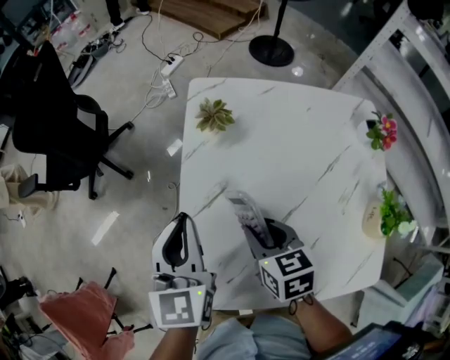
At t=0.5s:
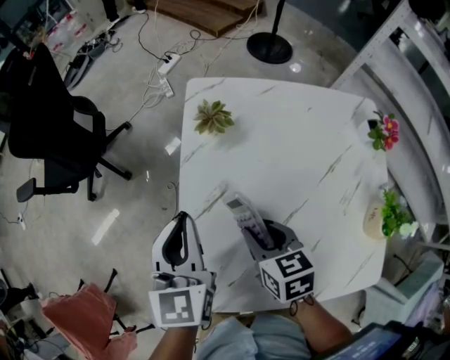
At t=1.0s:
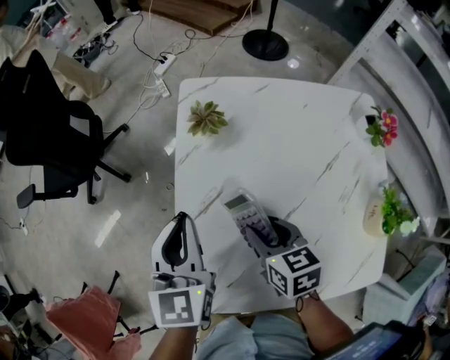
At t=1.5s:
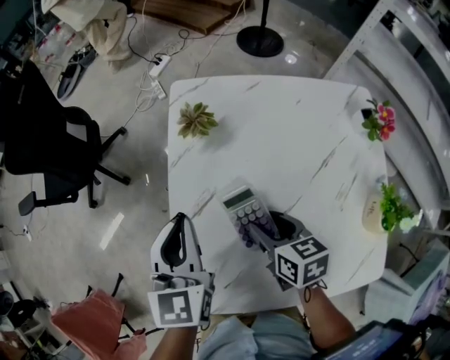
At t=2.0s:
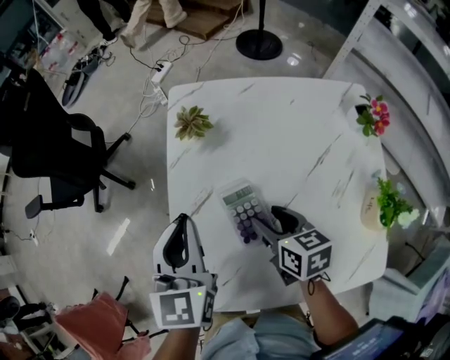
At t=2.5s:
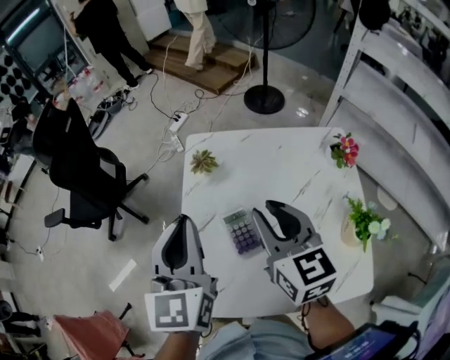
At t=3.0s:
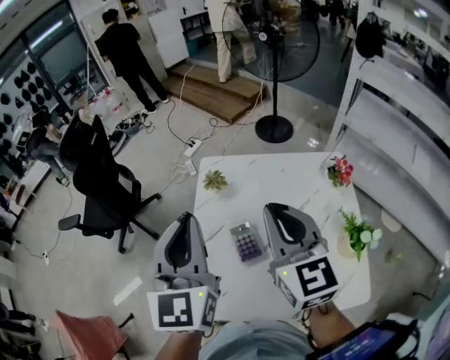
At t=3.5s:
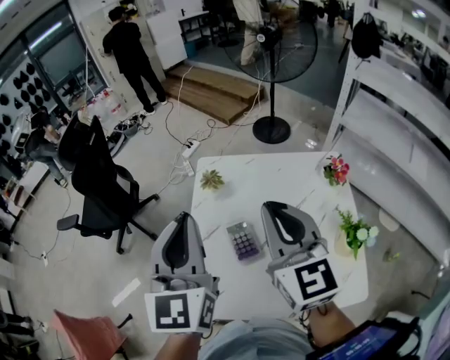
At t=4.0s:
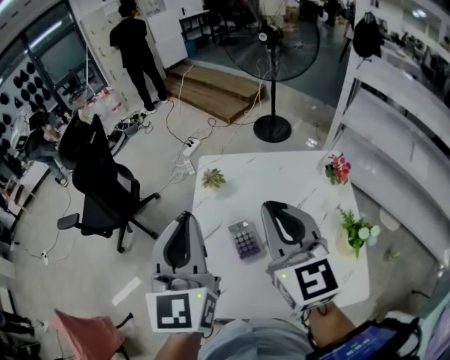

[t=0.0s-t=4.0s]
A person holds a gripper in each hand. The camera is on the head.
t=0.0s to t=2.0s: The right gripper heads to the right, covering roughly 5 cm, and opens its fingers.
t=2.0s to t=4.0s: Both grippers move upward, about 30 cm. The left gripper turns by some 20 degrees. Meanwhile the right gripper points its fingers some 40 degrees further upward, and closes its fingers.

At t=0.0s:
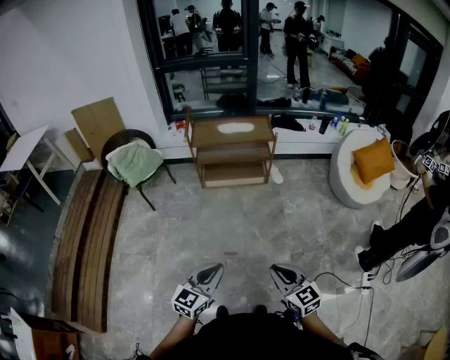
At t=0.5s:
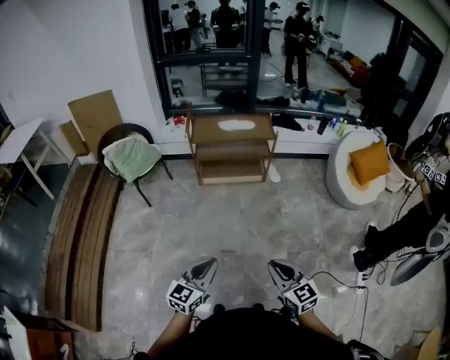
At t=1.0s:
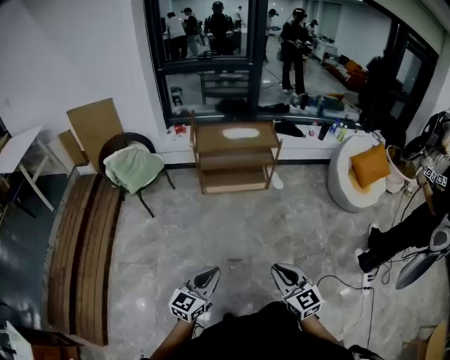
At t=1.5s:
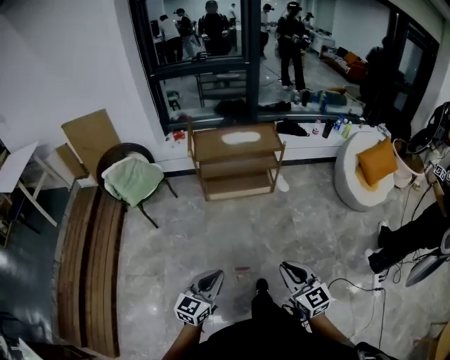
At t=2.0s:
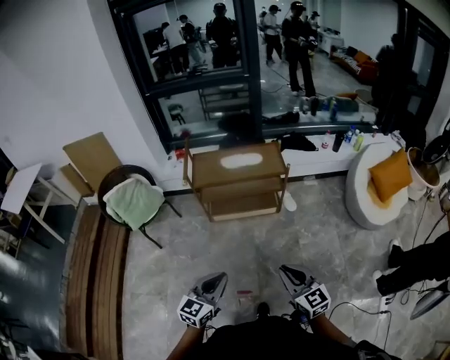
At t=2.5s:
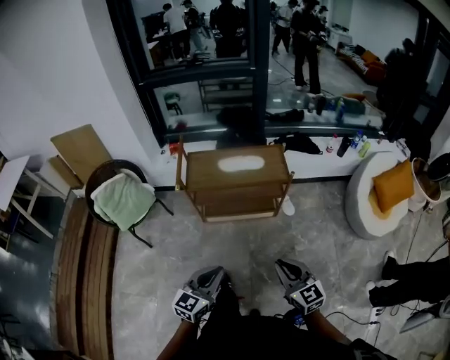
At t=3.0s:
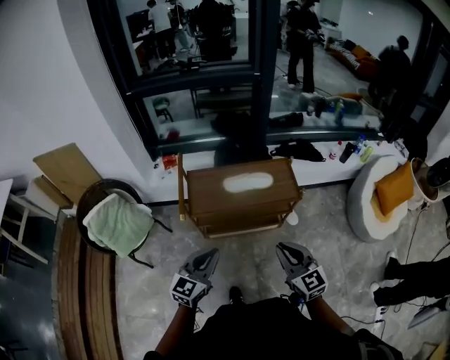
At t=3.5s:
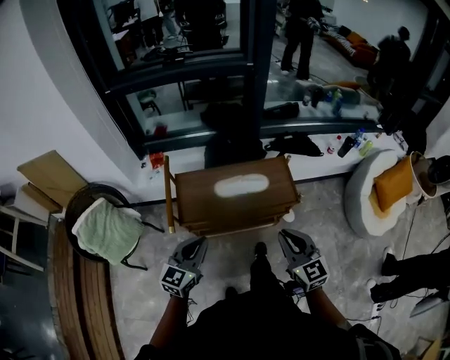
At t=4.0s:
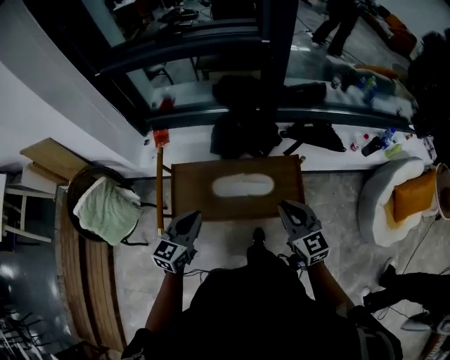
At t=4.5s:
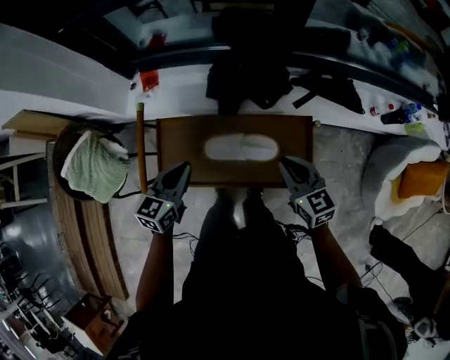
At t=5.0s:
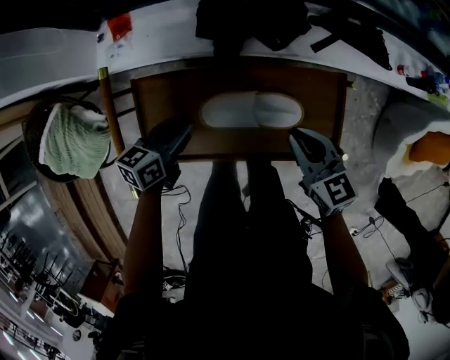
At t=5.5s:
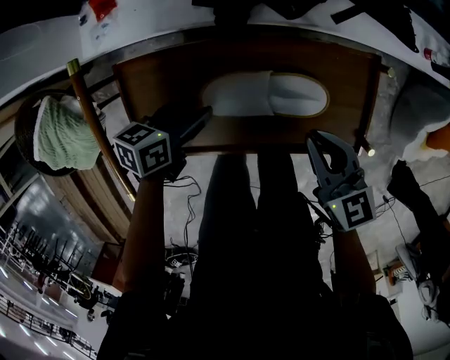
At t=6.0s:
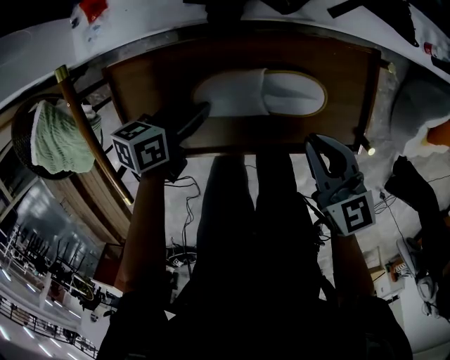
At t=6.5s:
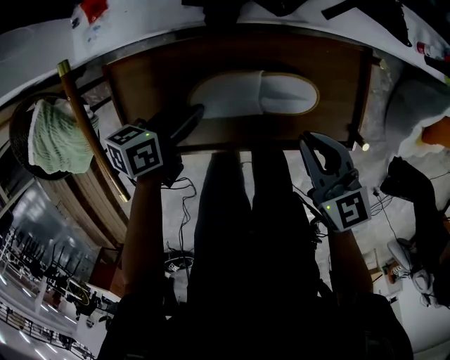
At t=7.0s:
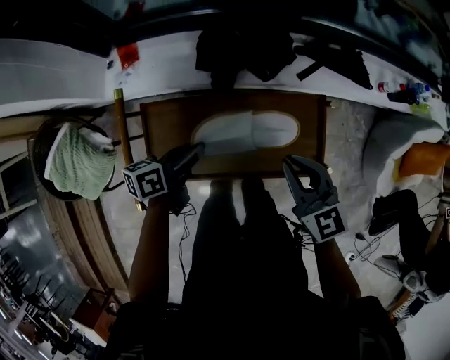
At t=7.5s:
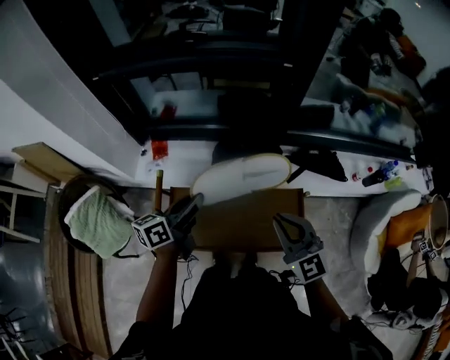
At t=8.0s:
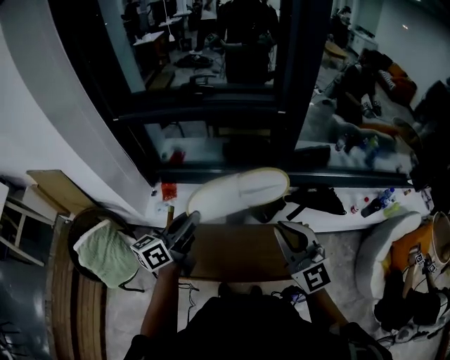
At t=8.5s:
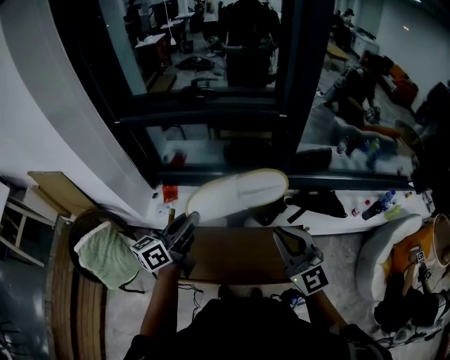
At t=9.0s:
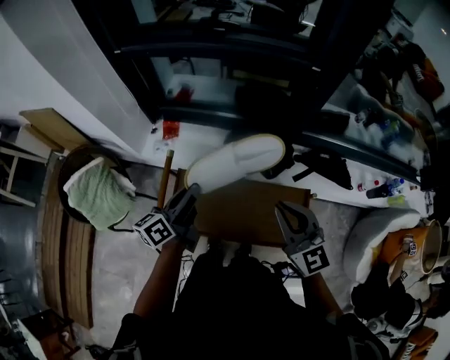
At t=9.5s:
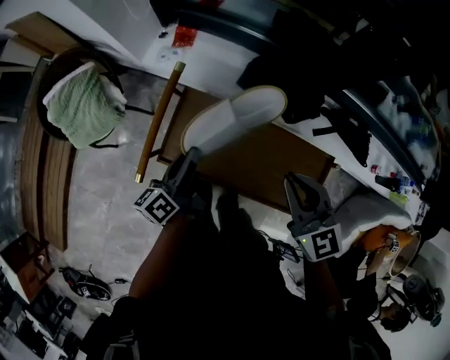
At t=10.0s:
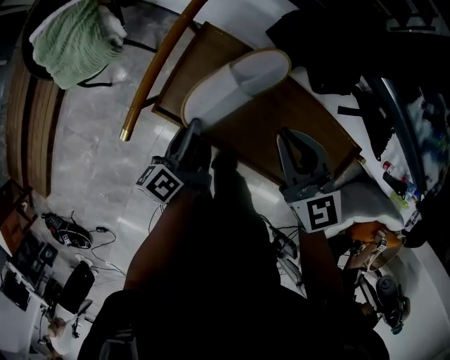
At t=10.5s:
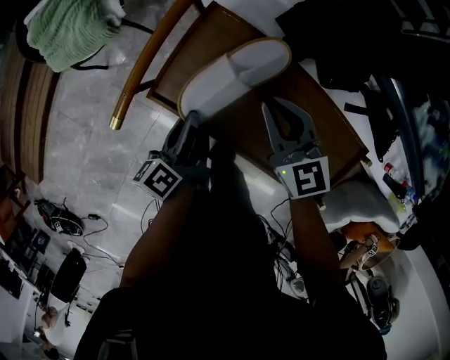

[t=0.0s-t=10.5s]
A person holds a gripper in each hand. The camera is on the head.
t=0.0s to t=2.0s: Both grippers travel together forward, about 30 cm.
t=2.0s to t=4.0s: The two grippers travel together, forward, approximately 70 cm.
t=4.0s to t=6.5s: The left gripper is displaced downward and forward by roughly 30 cm, changes its angle by roughly 50 degrees, and opens, then closes again; the right gripper heads downward, covering roughly 20 cm, and changes its angle by about 20 degrees.
t=6.5s to t=8.5s: Both grippers move upward, approximately 40 cm. The right gripper angles its fingers upward, by roughly 30 degrees. The left gripper tilts its fingers roughly 40 degrees upward.
t=8.5s to t=10.5s: Both grippers travel together downward, about 40 cm. The left gripper rotates roughly 60 degrees, while the right gripper changes its angle by roughly 40 degrees.

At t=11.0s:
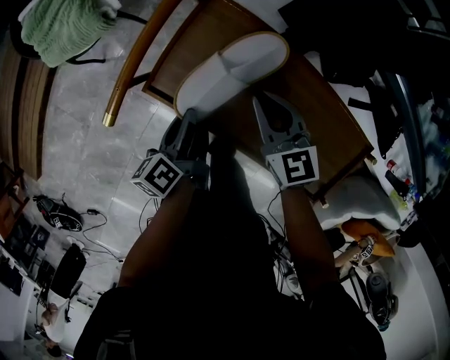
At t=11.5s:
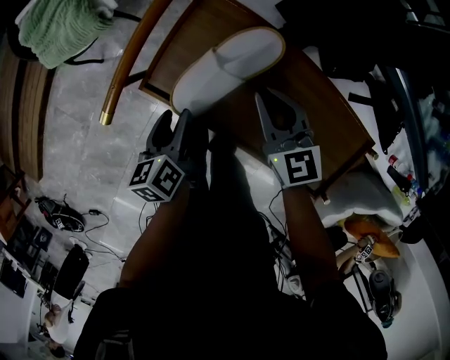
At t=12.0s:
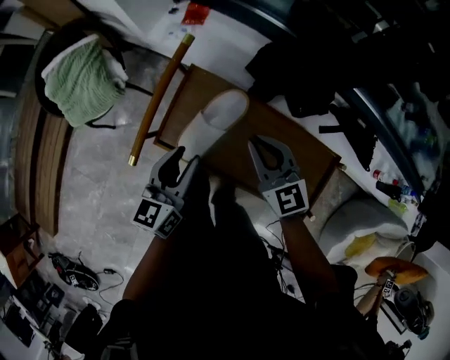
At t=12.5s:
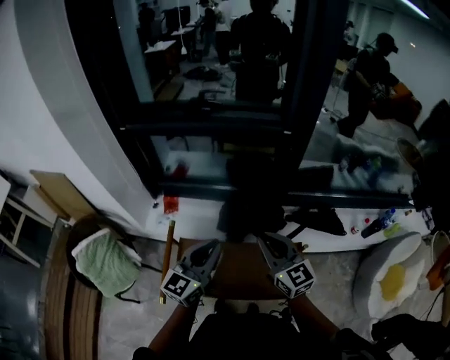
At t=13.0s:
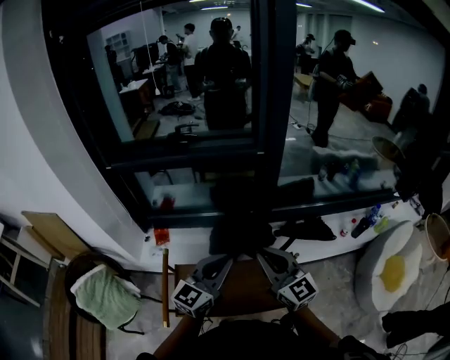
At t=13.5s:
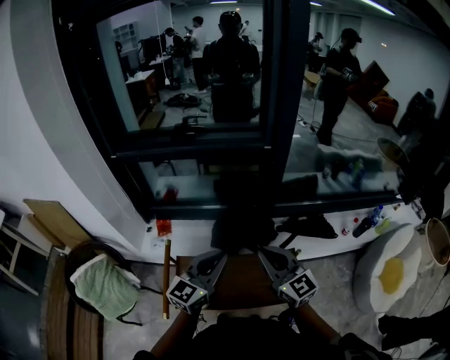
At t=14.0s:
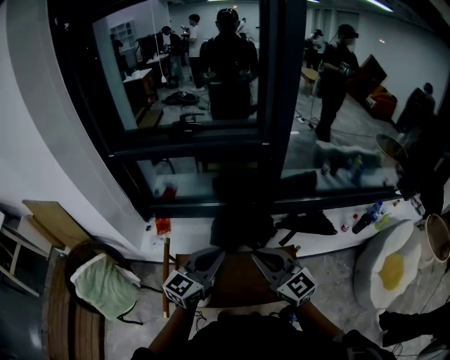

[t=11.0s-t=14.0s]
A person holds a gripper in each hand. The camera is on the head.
t=11.0s to t=12.5s: The two grippers go some 40 cm upward. The right gripper turns by approximately 40 degrees. The left gripper tips its fingers upward by about 30 degrees, and opens, then closes again.
t=12.5s to t=14.0s: The right gripper goes roughly 5 cm backward.

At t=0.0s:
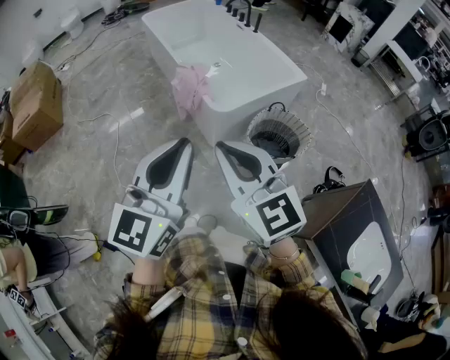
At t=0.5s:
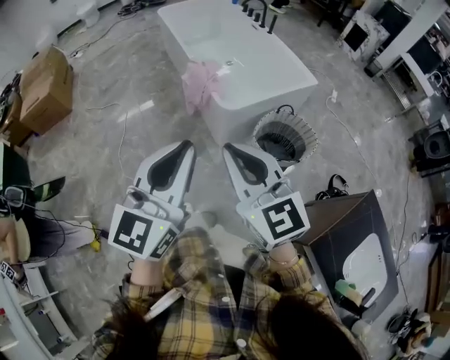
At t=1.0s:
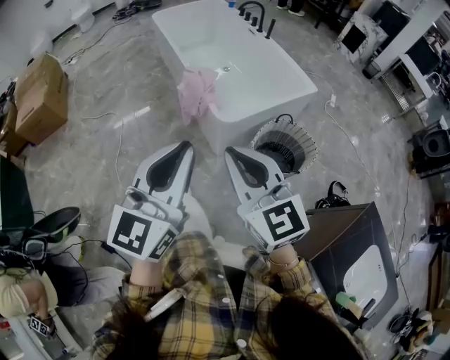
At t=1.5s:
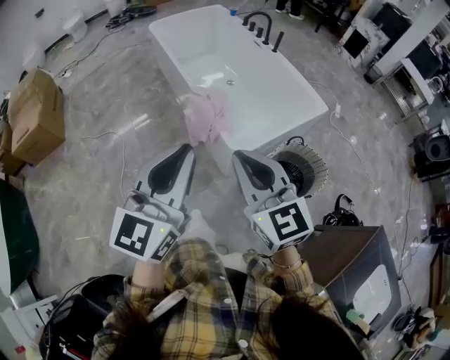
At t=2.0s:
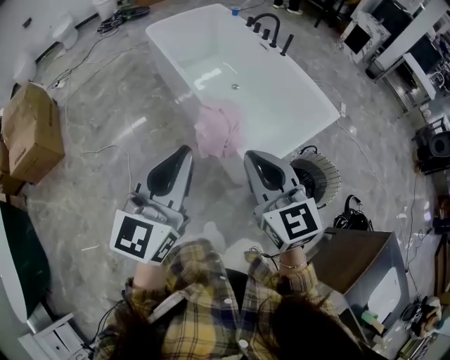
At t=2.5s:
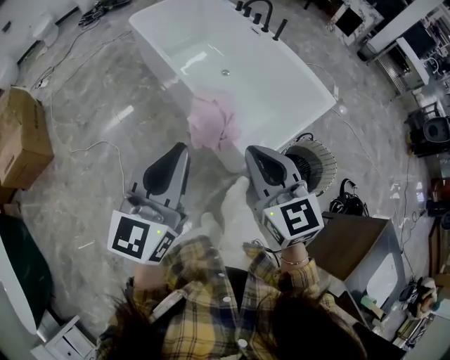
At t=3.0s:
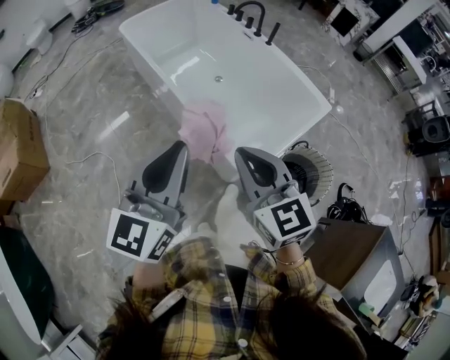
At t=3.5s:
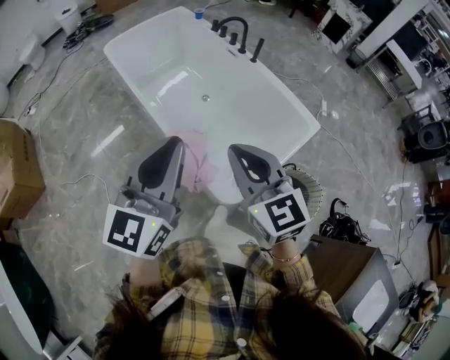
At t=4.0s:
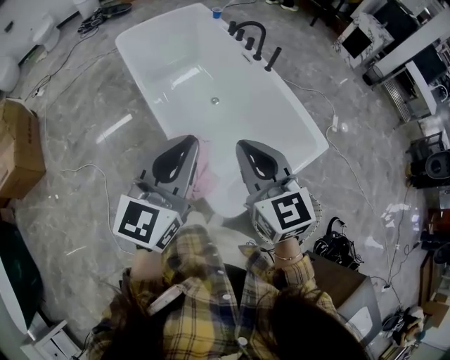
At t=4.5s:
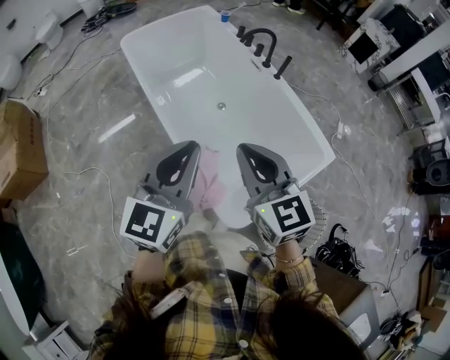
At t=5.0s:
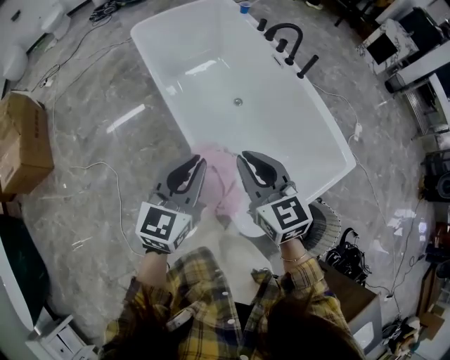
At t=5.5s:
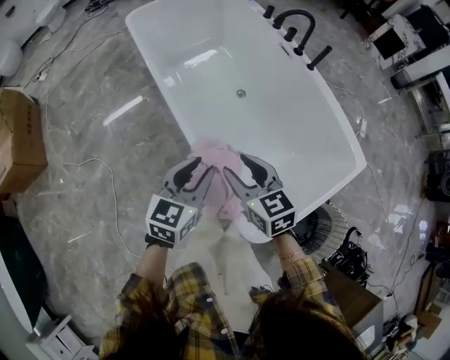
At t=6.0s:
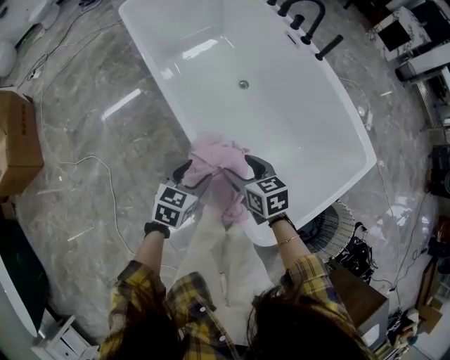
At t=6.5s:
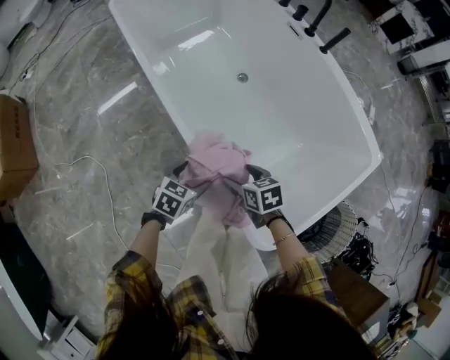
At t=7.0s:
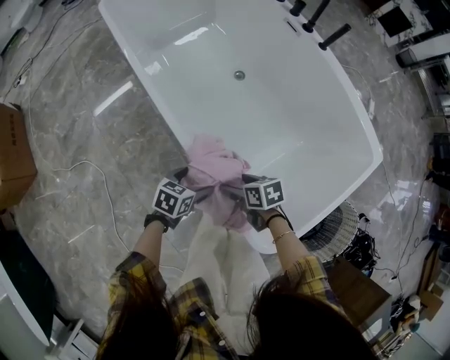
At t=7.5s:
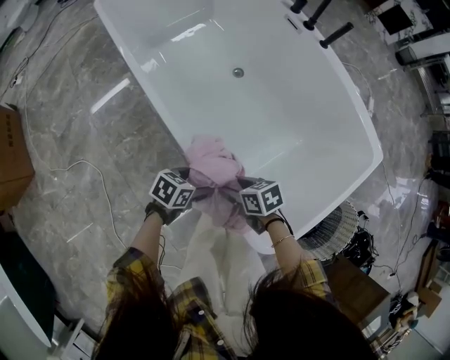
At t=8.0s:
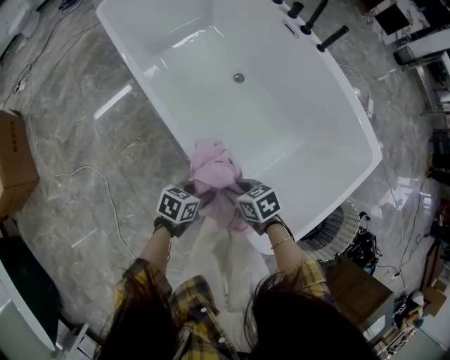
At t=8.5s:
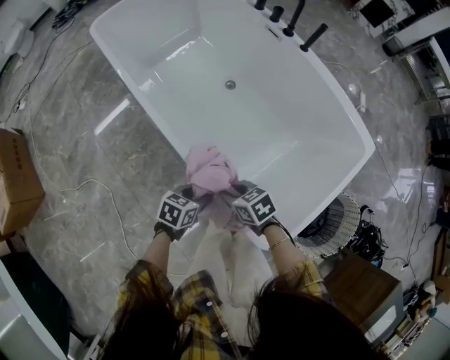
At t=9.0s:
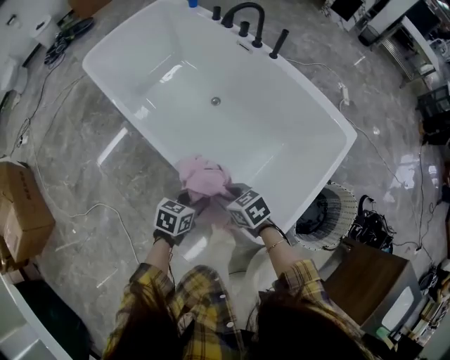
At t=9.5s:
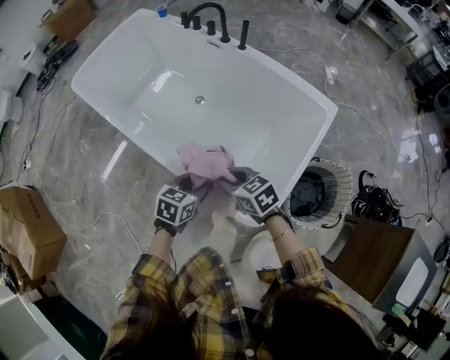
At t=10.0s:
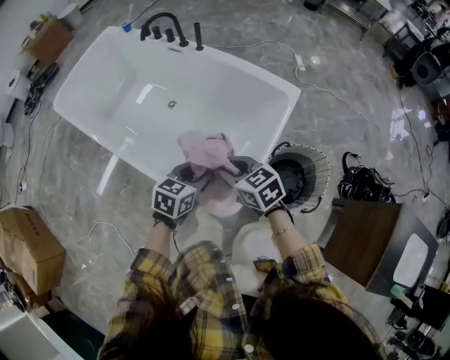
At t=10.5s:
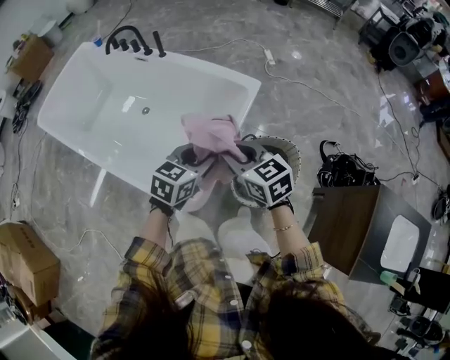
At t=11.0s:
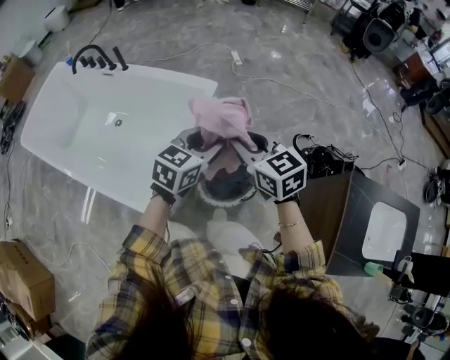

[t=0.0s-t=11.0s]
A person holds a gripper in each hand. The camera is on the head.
t=0.0s to t=2.0s: The left gripper is displaced forward and to the left by some 35 cm. Meanwhile the right gripper goes some 35 cm forward.
t=2.0s to t=3.5s: The left gripper heads forward and to the right, covering roughly 25 cm, while the right gripper heads forward, covering roughly 20 cm.
t=3.5s to t=5.5s: Both grippers move downward and forward, about 35 cm. The right gripper changes its angle by approximately 20 degrees, and opens its fingers. Meanwhile the left gripper rotates about 30 degrees.
t=5.5s to t=7.5s: Both grippers travel together downward, roughly 30 cm. The right gripper changes its angle by approximately 40 degrees, and opens, then closes again; the left gripper swivels approximately 50 degrees, and opens up.
t=7.5s to t=9.0s: Both grippers move upward, some 15 cm. The left gripper closes up.
t=9.0s to t=11.0s: The pair of grippers is taken about 60 cm. The right gripper changes its angle by approximately 50 degrees; the left gripper turns by approximately 40 degrees.
